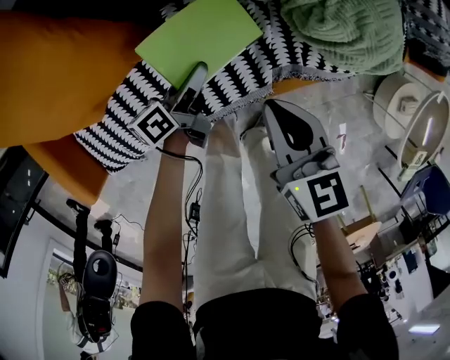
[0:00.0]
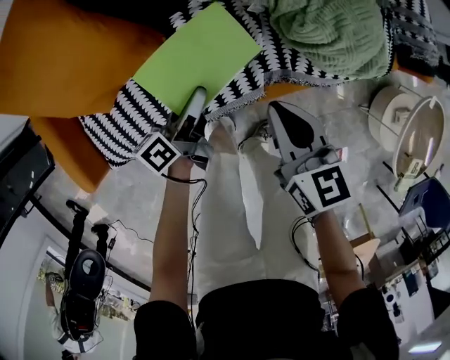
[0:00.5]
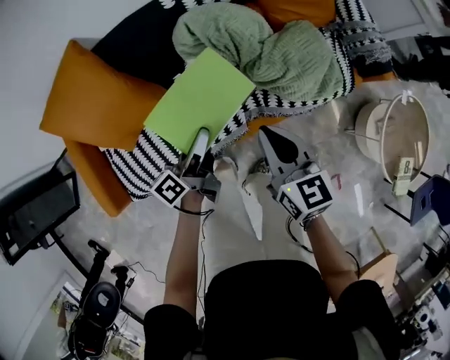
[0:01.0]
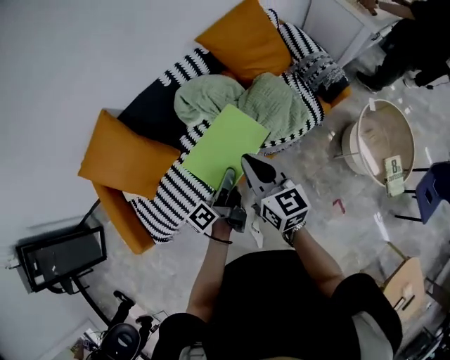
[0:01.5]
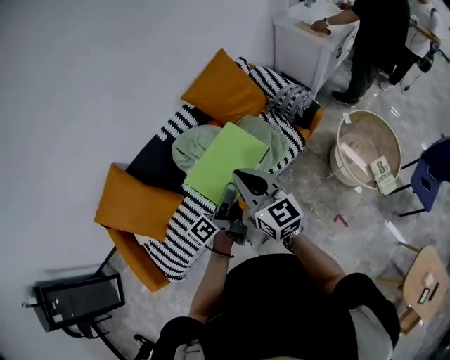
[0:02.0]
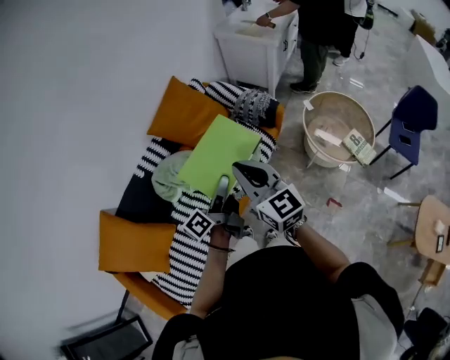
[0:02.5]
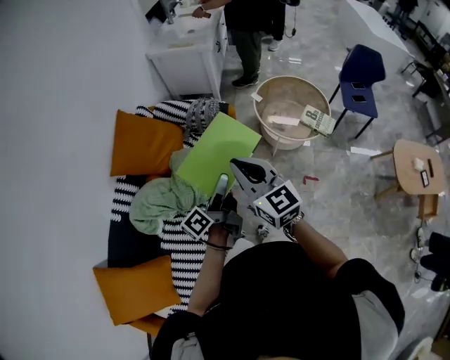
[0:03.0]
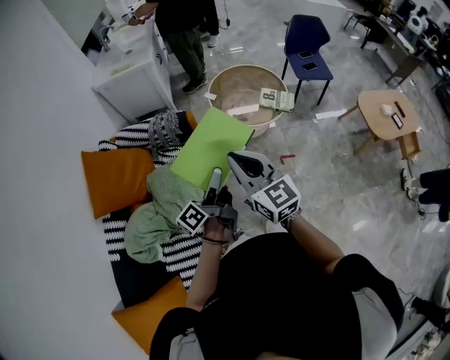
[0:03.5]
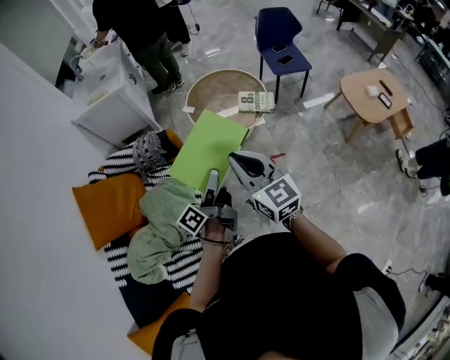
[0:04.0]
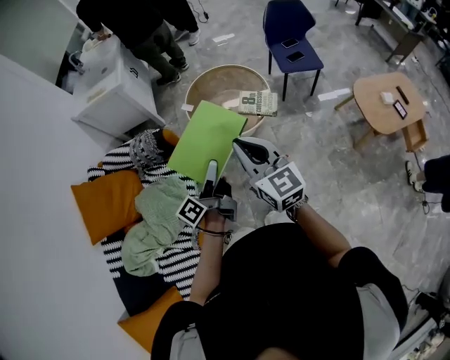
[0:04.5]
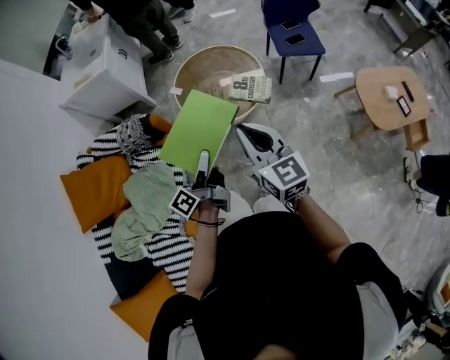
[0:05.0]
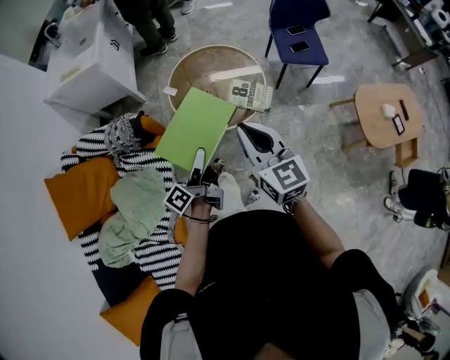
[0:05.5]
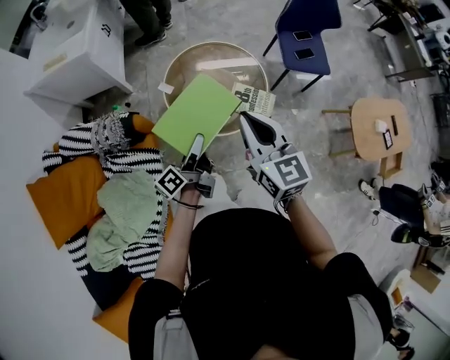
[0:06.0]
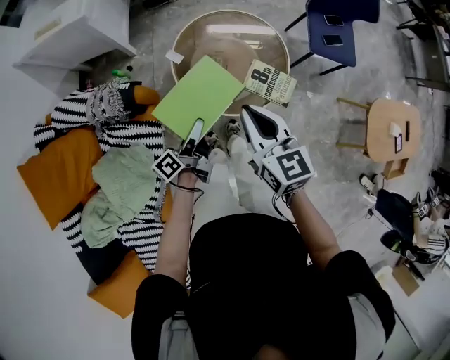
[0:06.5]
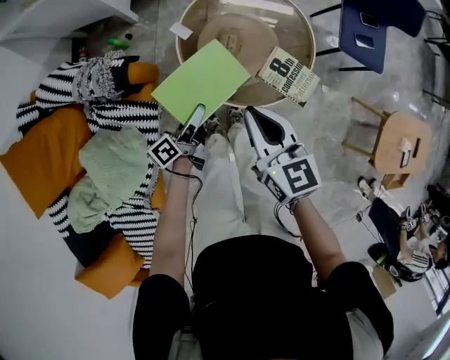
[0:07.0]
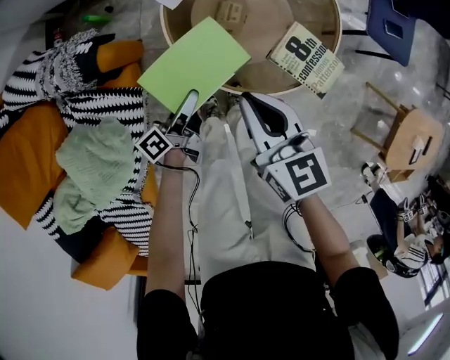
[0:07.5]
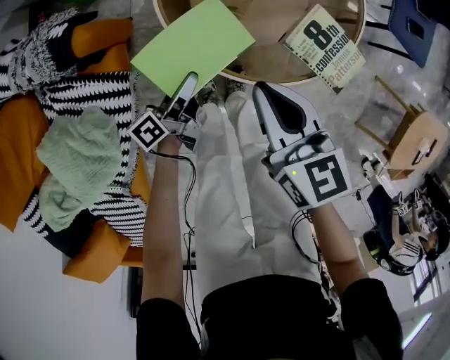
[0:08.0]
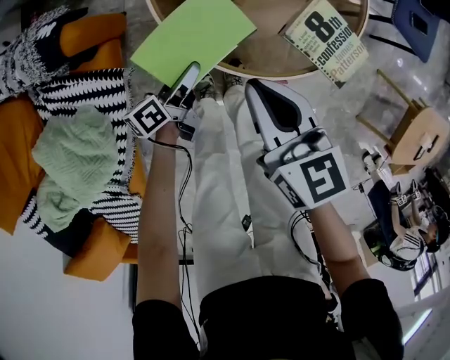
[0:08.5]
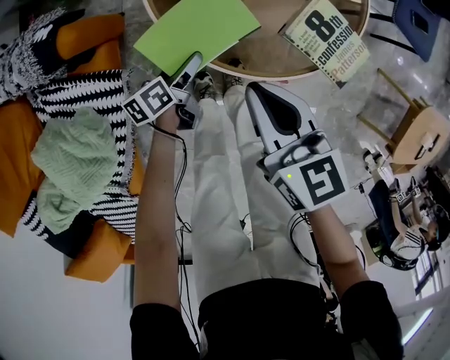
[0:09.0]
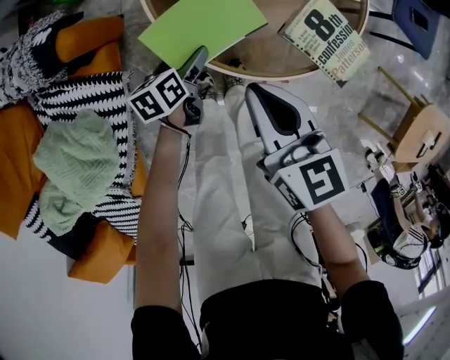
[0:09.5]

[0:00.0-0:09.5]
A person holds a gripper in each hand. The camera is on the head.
0:00.0 to 0:02.0: Both grippers move upward and to the right, about 50 cm. The left gripper swivels approximately 20 degrees. The right gripper points its fingers roughly 40 degrees further upward.
0:02.0 to 0:04.0: The right gripper changes place by about 35 cm, and swivels roughly 60 degrees; the left gripper moves about 30 cm, and rotates approximately 60 degrees.
0:04.0 to 0:05.5: The right gripper shifts approximately 30 cm forward and to the right. Meanwhile the left gripper moves forward, to the right and downward, approximately 25 cm.
0:05.5 to 0:07.5: Both grippers travel together downward and forward, some 40 cm. The right gripper swivels about 30 degrees.
0:07.5 to 0:09.5: The right gripper is displaced downward by some 10 cm, while the left gripper moves downward, roughly 15 cm, tips its fingers downward by roughly 30 degrees, and opens its fingers.

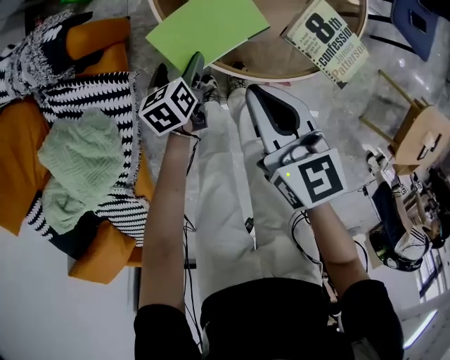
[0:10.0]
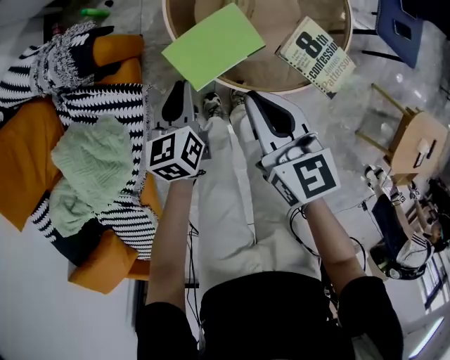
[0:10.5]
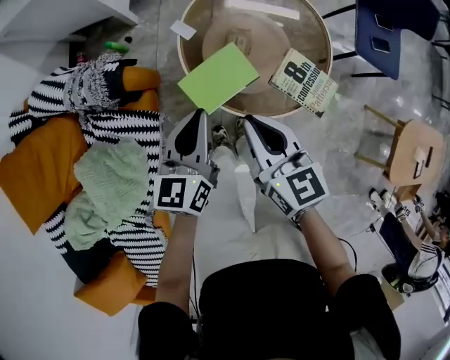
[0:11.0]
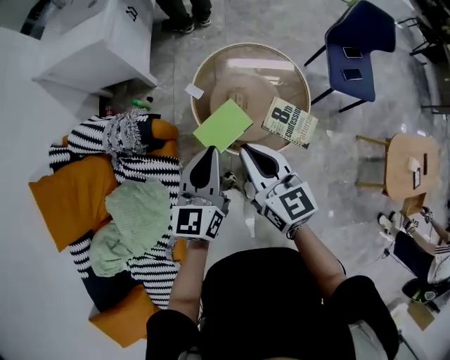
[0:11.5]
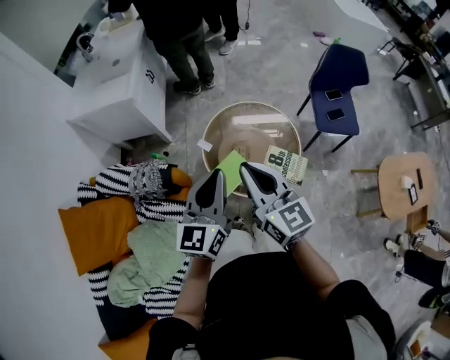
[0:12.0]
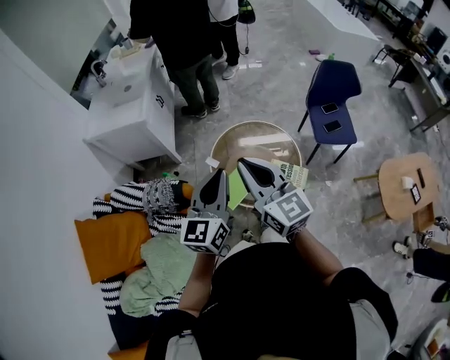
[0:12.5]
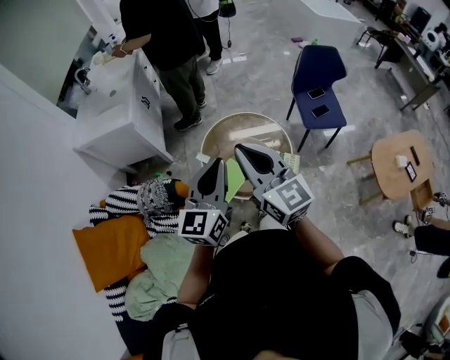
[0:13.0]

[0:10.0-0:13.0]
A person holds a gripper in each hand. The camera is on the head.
0:10.0 to 0:11.5: The left gripper moves upward, roughly 50 cm, points its fingers some 40 degrees further upward, and closes. The right gripper goes about 30 cm upward, and swivels approximately 20 degrees.
0:11.5 to 0:13.0: Both grippers move upward, about 25 cm. The left gripper turns by approximately 20 degrees, while the right gripper rotates roughly 20 degrees.

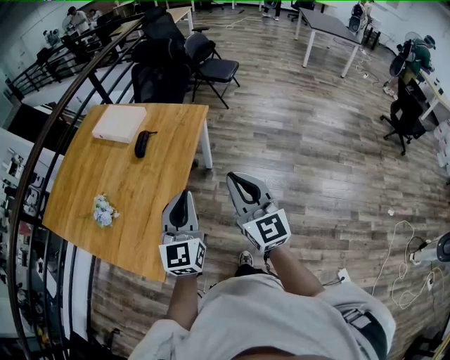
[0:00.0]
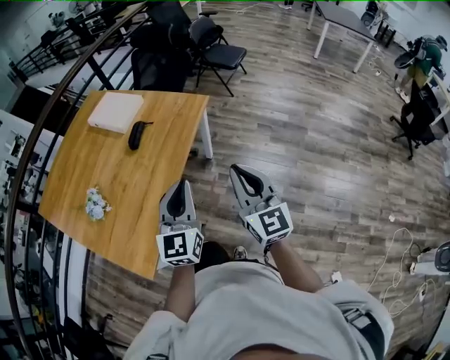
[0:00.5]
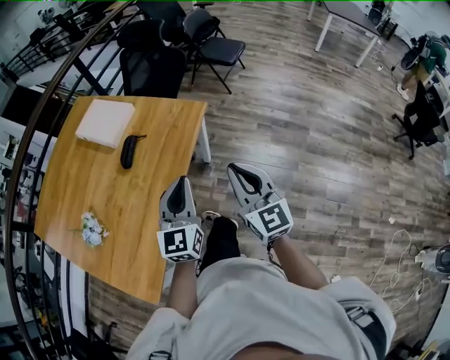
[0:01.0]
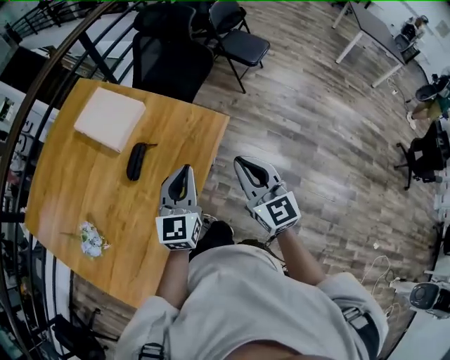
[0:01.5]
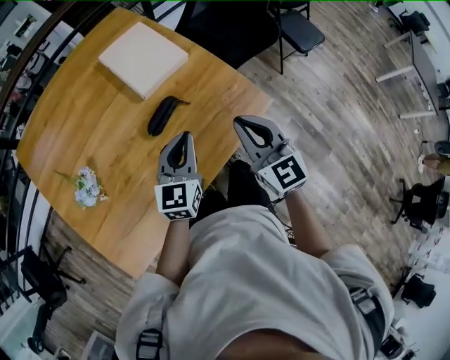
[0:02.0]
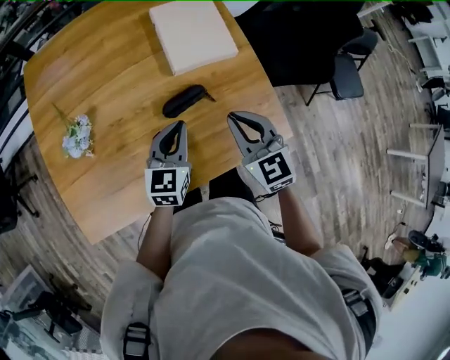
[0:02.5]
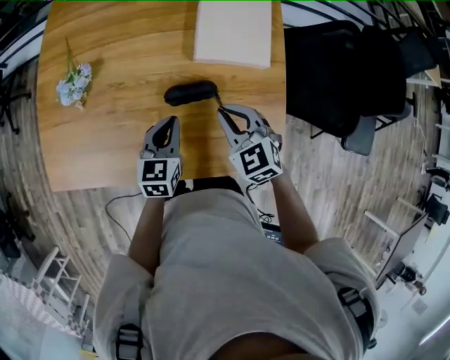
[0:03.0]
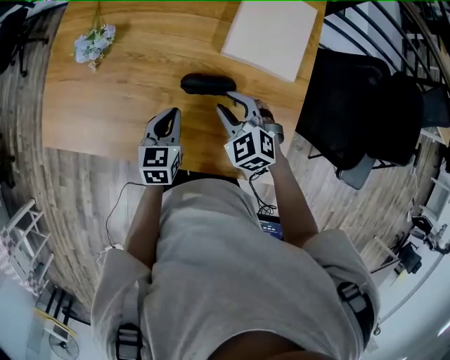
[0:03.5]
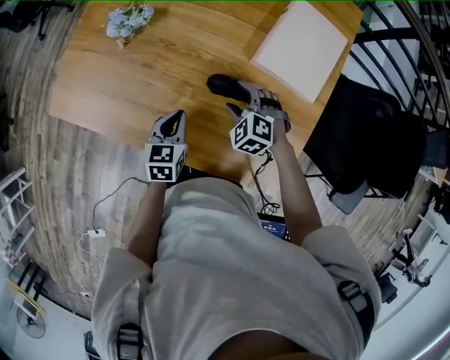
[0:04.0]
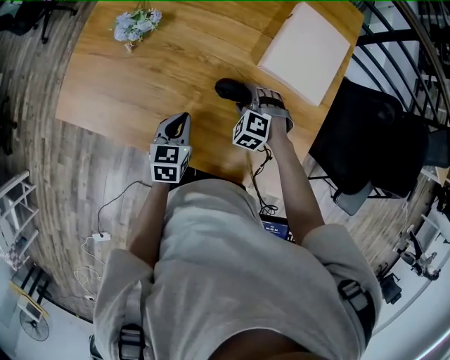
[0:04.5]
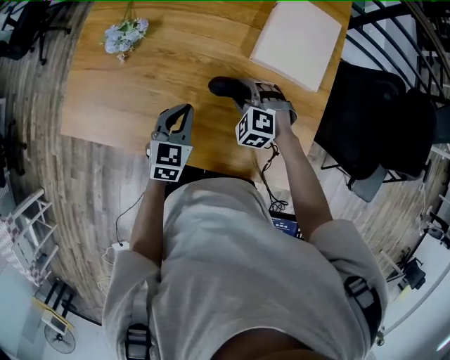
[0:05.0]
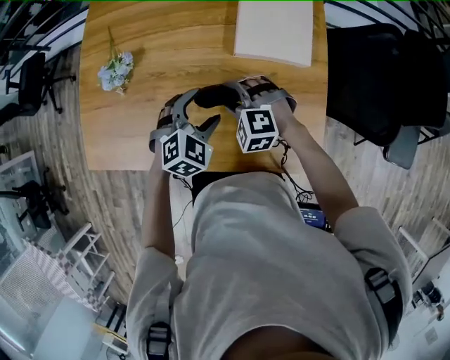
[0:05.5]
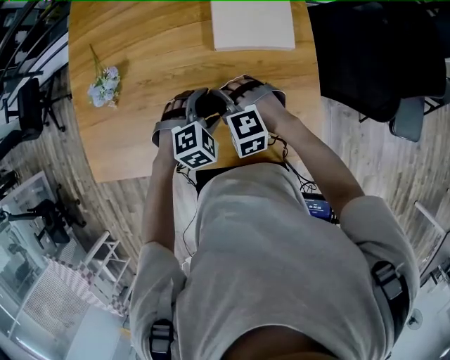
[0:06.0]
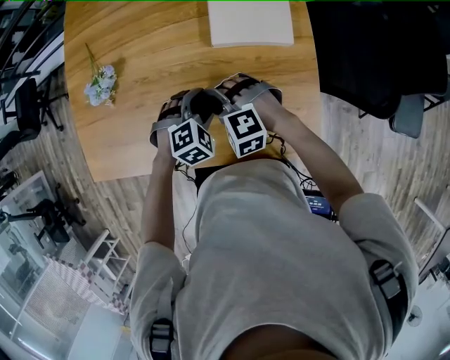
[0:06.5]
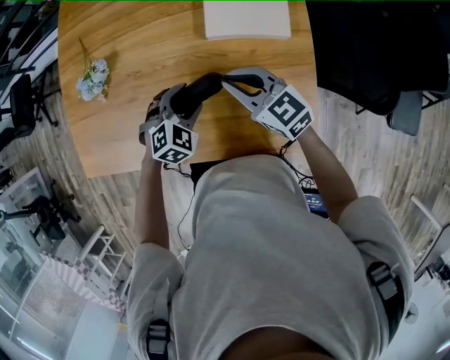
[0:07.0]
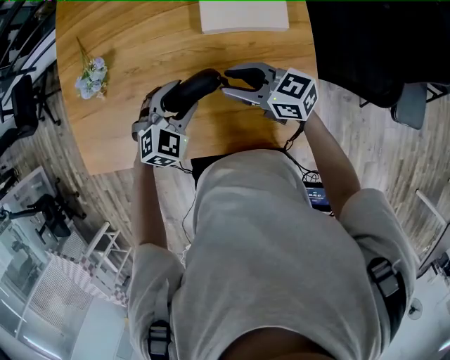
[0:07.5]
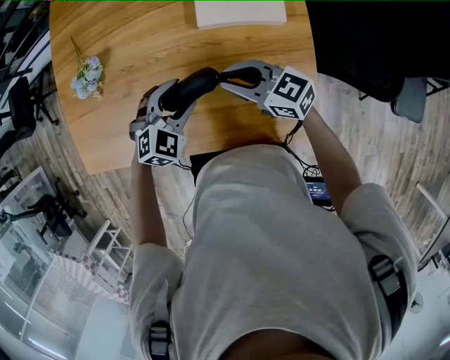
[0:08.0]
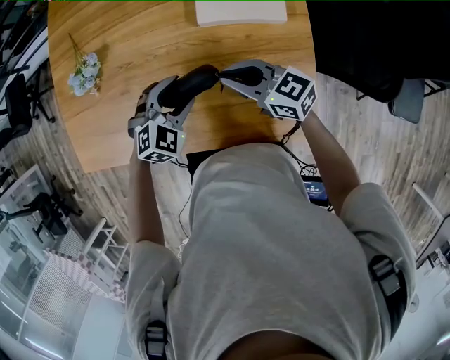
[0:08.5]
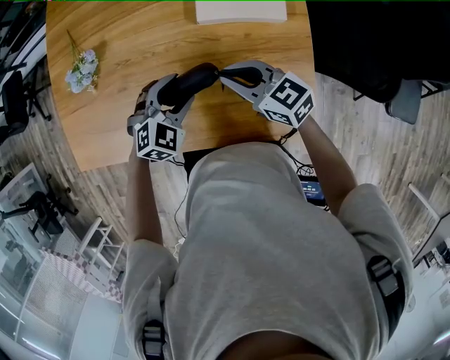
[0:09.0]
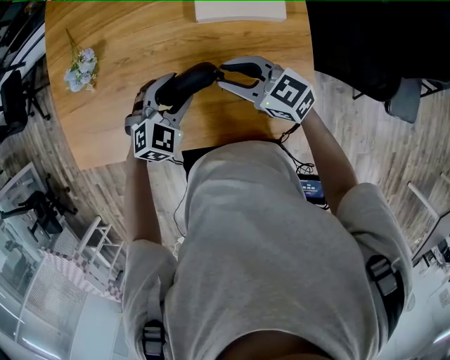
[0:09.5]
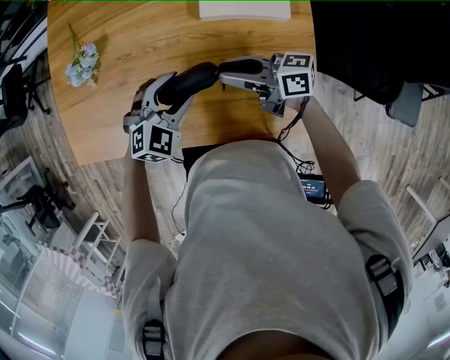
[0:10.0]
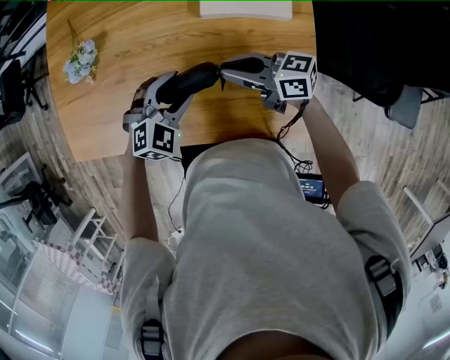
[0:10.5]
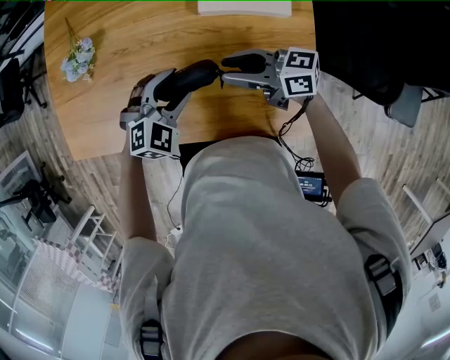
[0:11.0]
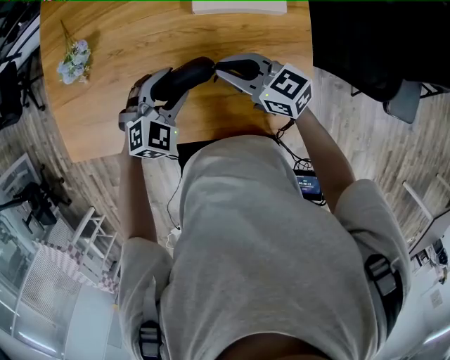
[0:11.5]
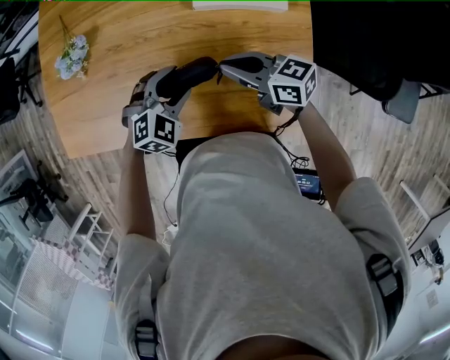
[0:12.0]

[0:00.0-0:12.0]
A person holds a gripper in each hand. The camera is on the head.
0:00.0 to 0:02.0: The pair of grippers is taken some 40 cm. The right gripper rotates roughly 40 degrees; the left gripper rotates some 30 degrees.
0:02.0 to 0:04.0: The grippers both shift downward by approximately 20 cm. The right gripper tips its fingers downward by approximately 40 degrees, and opens. The left gripper rotates about 70 degrees.
0:04.0 to 0:06.0: The right gripper heads upward, covering some 5 cm. Meanwhile the left gripper shifts about 15 cm to the right, rolls clockwise, seen from behind, by roughly 80 degrees, and opens its fingers.
0:06.0 to 0:08.0: The right gripper travels to the right by approximately 5 cm, twists roughly 60 degrees clockwise, seen from behind, and closes.
0:08.0 to 0:10.0: The right gripper changes its angle by approximately 30 degrees.

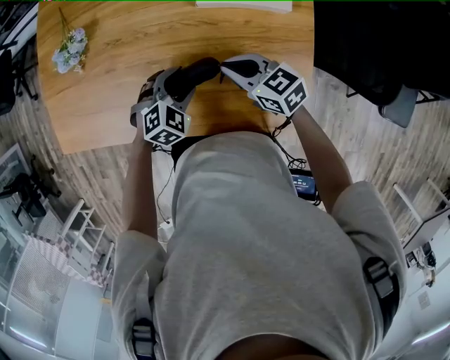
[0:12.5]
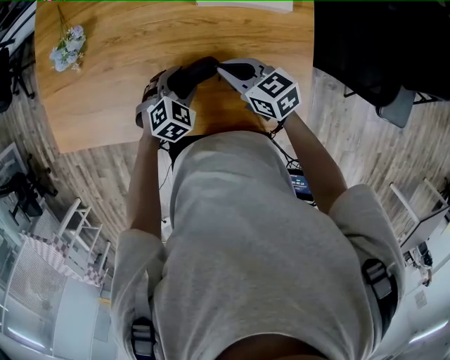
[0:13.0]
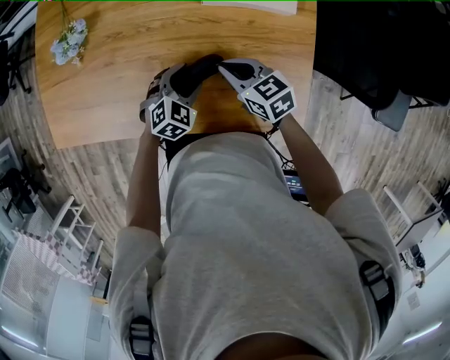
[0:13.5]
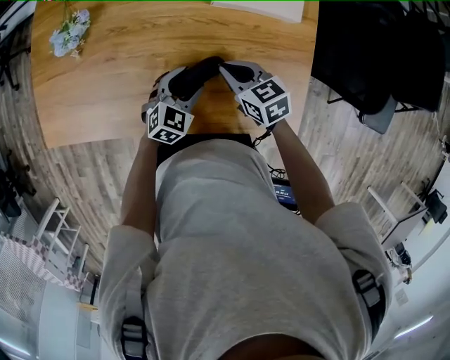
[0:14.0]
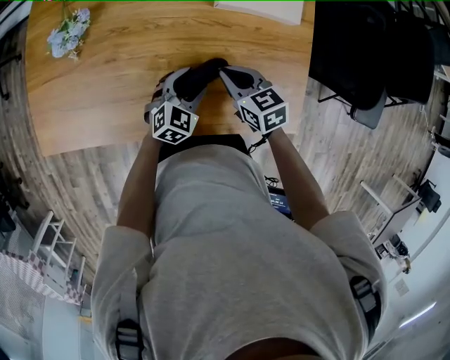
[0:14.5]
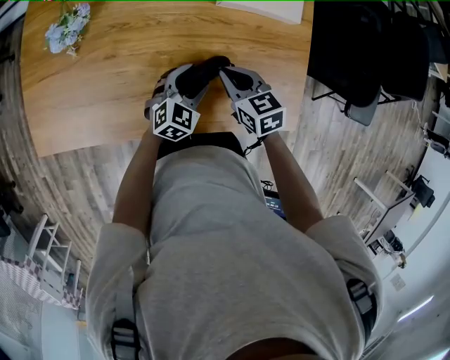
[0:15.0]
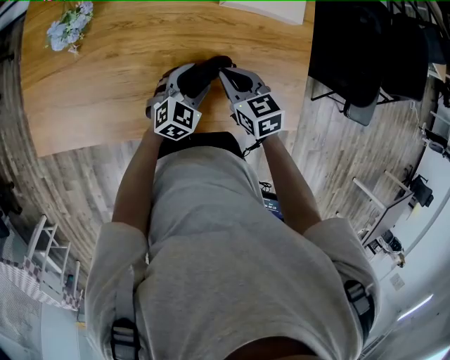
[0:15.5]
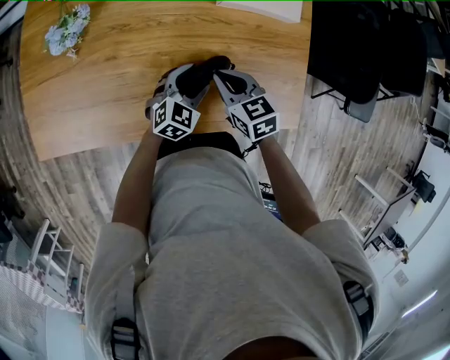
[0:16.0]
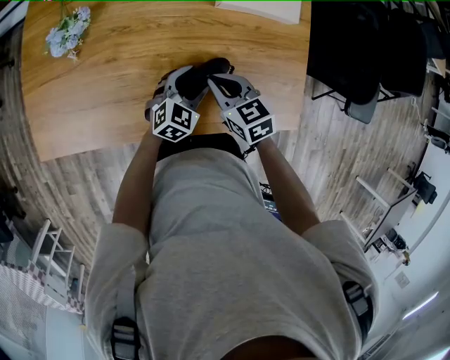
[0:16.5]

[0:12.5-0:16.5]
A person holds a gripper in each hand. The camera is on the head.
0:12.5 to 0:14.5: The left gripper swivels about 20 degrees. Meanwhile the right gripper swivels about 20 degrees.
0:14.5 to 0:16.5: The grippers move only a little.
